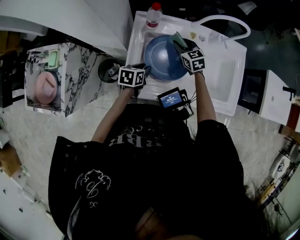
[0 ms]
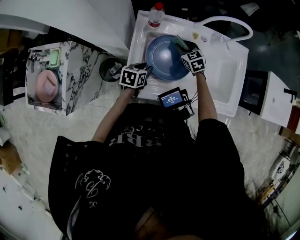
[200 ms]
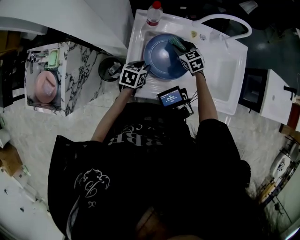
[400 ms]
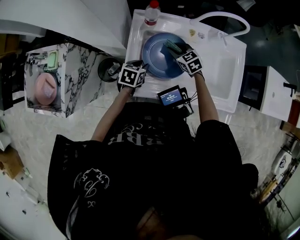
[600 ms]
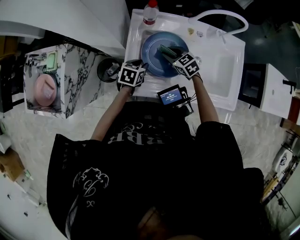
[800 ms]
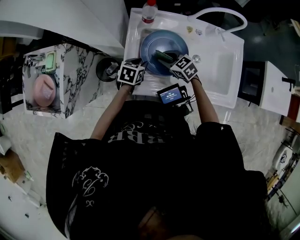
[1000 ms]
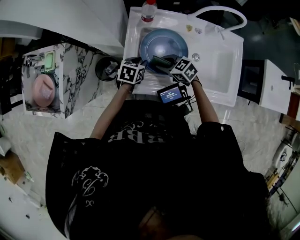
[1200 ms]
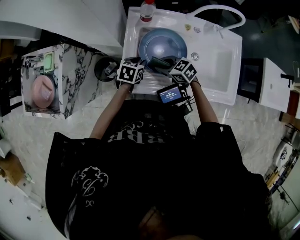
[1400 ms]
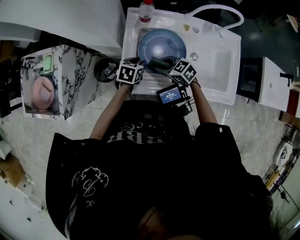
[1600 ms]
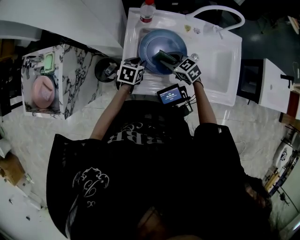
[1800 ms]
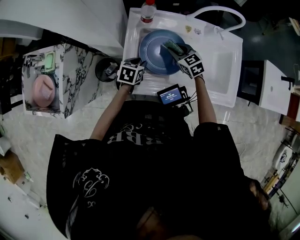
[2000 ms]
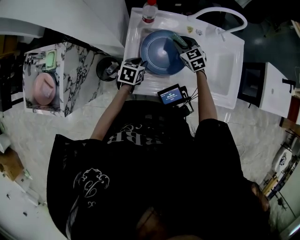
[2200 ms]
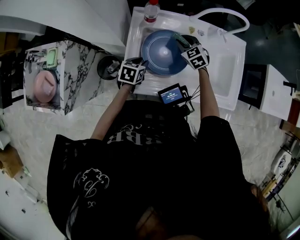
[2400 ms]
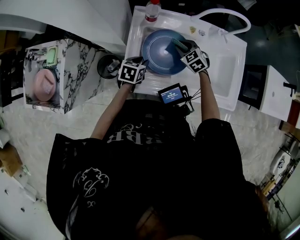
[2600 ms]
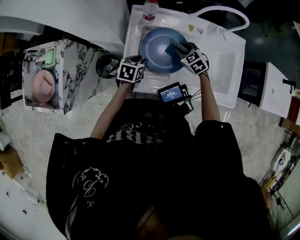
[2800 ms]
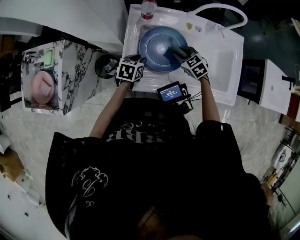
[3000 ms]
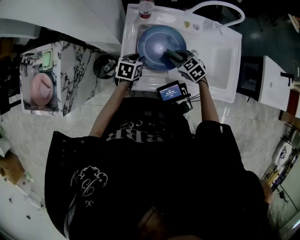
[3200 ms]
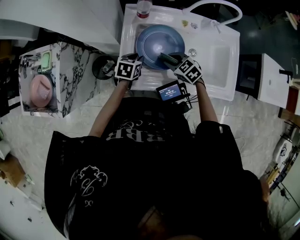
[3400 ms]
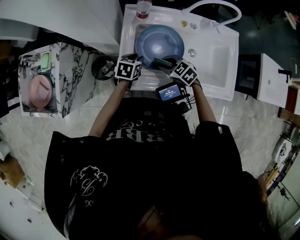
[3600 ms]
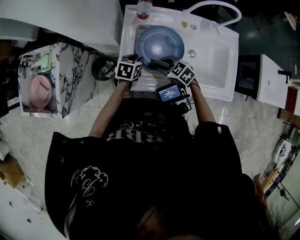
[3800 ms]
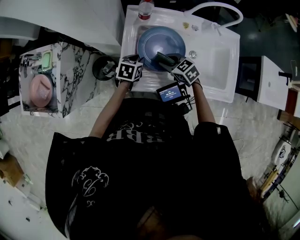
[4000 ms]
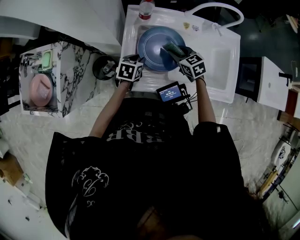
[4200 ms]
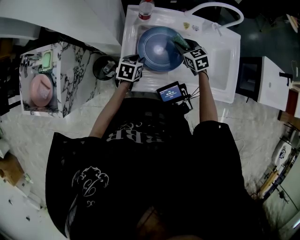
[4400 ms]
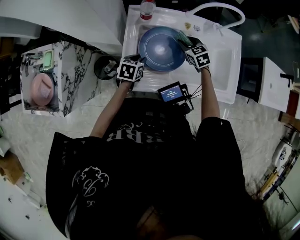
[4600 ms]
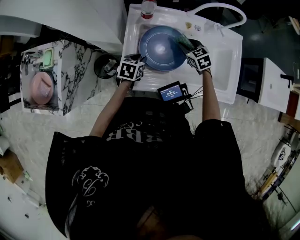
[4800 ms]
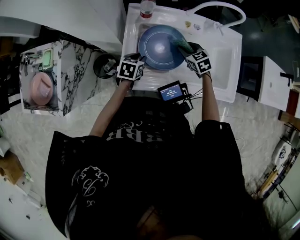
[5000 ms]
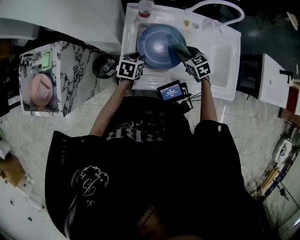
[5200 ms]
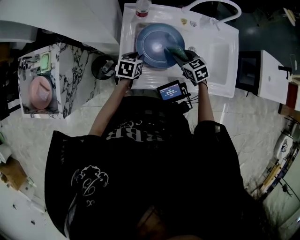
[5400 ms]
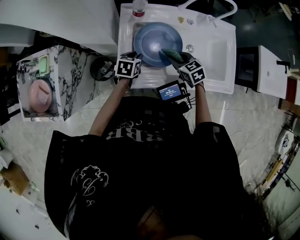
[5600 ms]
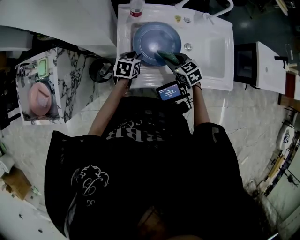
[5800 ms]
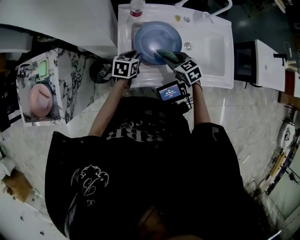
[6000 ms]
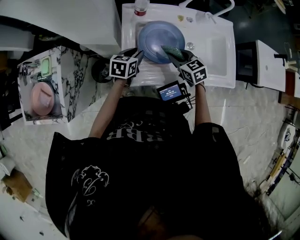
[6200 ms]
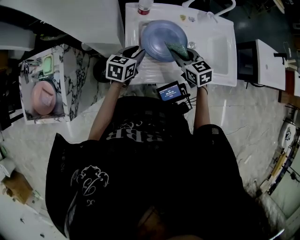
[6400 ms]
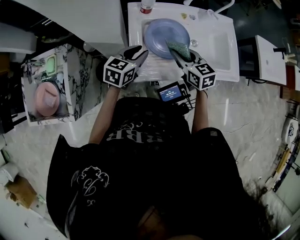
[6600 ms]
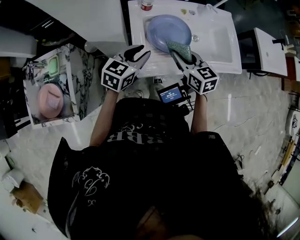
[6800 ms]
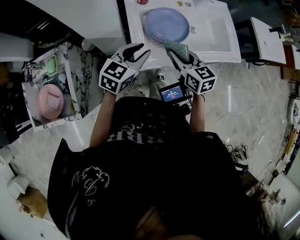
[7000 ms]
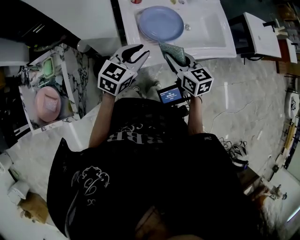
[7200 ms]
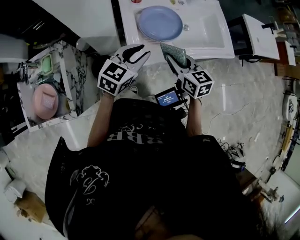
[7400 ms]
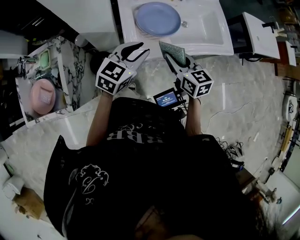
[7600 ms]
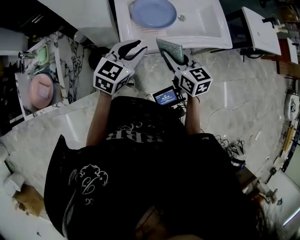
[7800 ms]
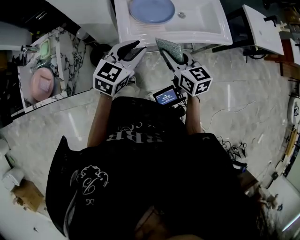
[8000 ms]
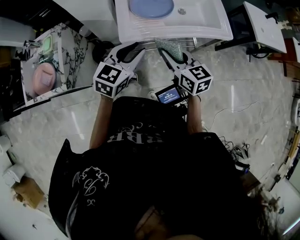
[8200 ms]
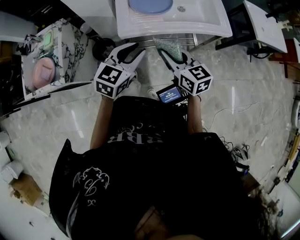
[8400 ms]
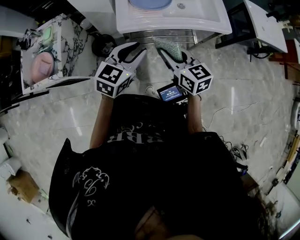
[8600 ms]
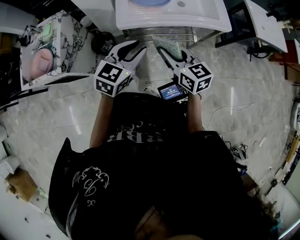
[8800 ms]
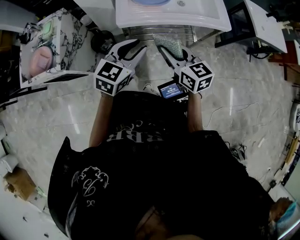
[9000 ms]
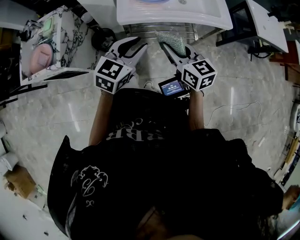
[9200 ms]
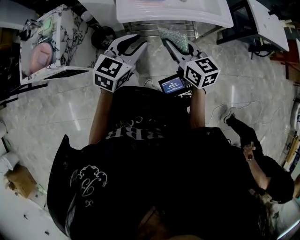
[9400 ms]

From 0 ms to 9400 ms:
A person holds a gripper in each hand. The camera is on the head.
From 0 ms to 1600 ms: The right gripper heads backward and to the left, covering approximately 20 cm, and turns by roughly 30 degrees.
From 1600 ms to 3200 ms: The right gripper shifts roughly 10 cm to the right, and travels forward and back again, roughly 15 cm each way.
From 3200 ms to 4800 ms: The right gripper shifts roughly 10 cm forward and to the right.
From 4800 ms to 6200 ms: The right gripper heads backward and to the left, covering about 10 cm.
From 6200 ms to 7800 ms: The grippers both shift backward and upward by roughly 25 cm. The right gripper swivels some 30 degrees; the left gripper changes its angle by some 40 degrees.
From 7800 ms to 9400 ms: The left gripper heads backward, covering some 15 cm, while the right gripper moves backward and to the right, some 15 cm.

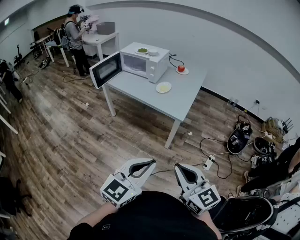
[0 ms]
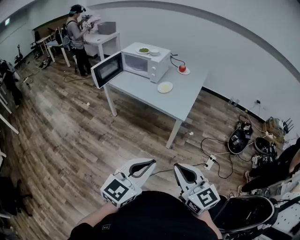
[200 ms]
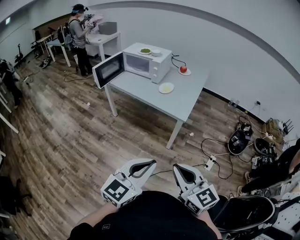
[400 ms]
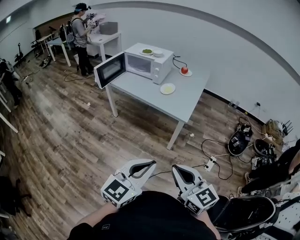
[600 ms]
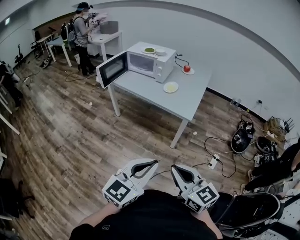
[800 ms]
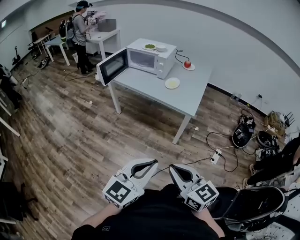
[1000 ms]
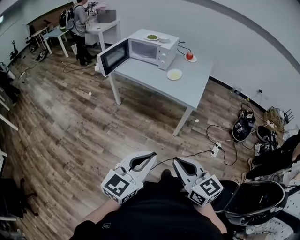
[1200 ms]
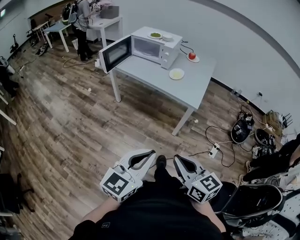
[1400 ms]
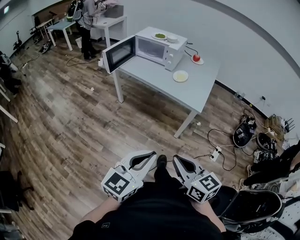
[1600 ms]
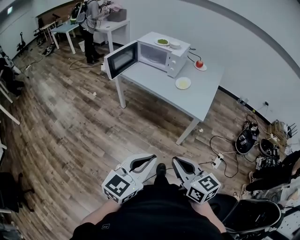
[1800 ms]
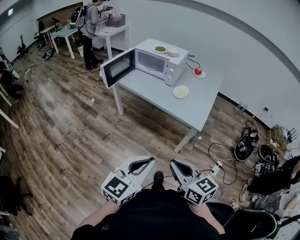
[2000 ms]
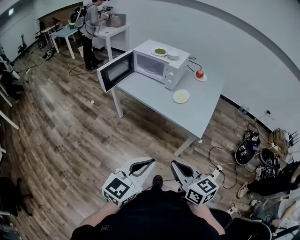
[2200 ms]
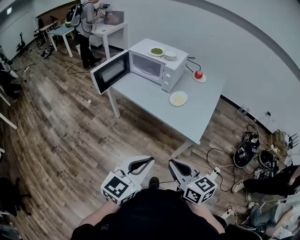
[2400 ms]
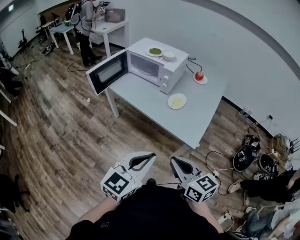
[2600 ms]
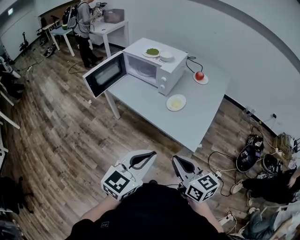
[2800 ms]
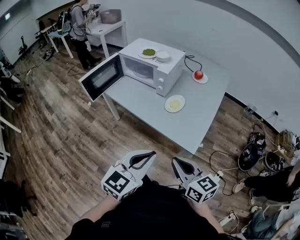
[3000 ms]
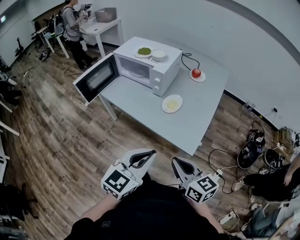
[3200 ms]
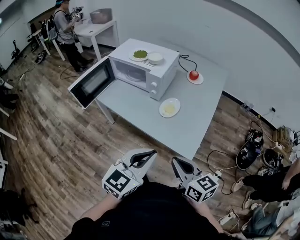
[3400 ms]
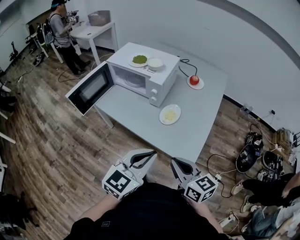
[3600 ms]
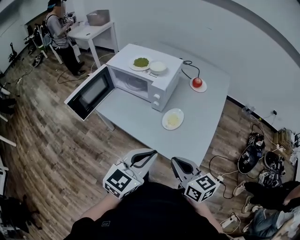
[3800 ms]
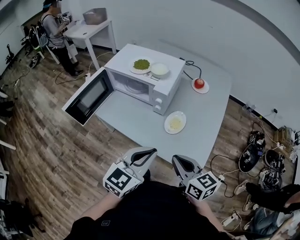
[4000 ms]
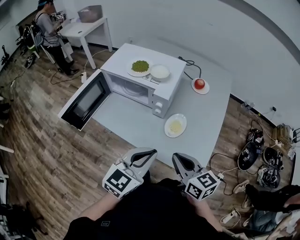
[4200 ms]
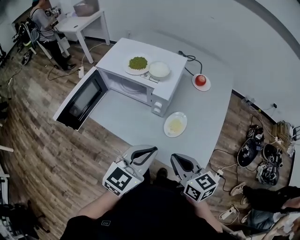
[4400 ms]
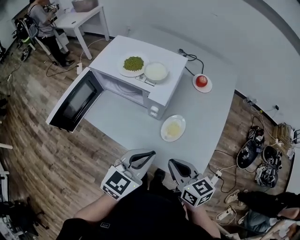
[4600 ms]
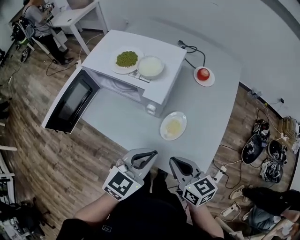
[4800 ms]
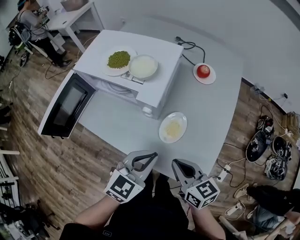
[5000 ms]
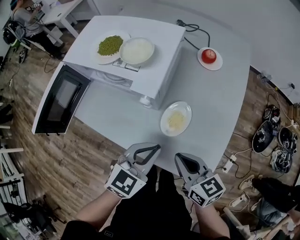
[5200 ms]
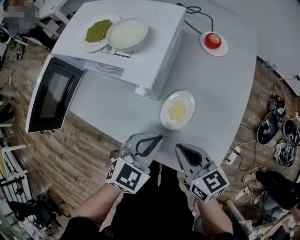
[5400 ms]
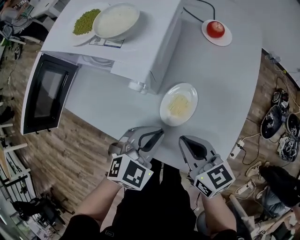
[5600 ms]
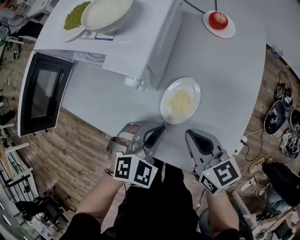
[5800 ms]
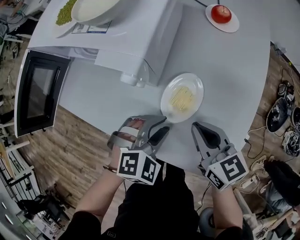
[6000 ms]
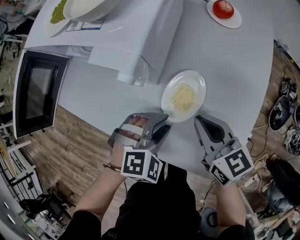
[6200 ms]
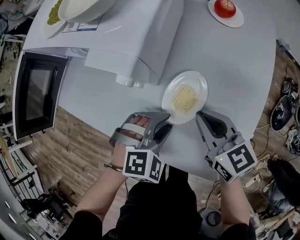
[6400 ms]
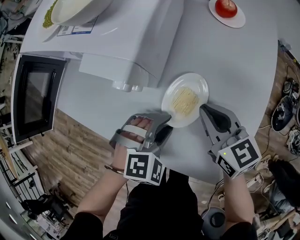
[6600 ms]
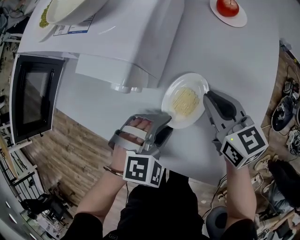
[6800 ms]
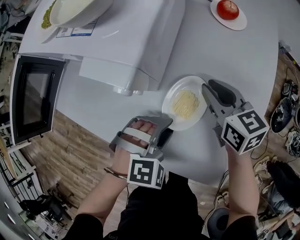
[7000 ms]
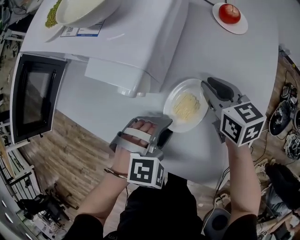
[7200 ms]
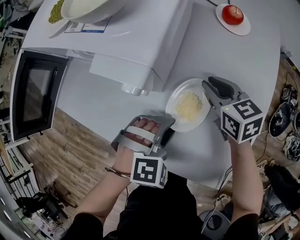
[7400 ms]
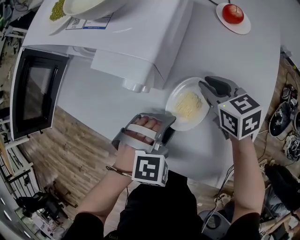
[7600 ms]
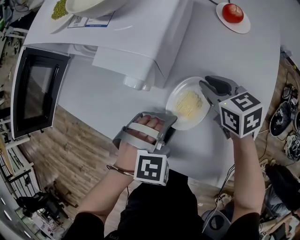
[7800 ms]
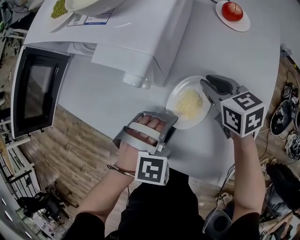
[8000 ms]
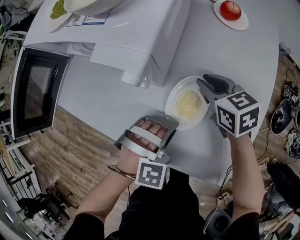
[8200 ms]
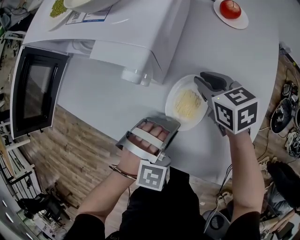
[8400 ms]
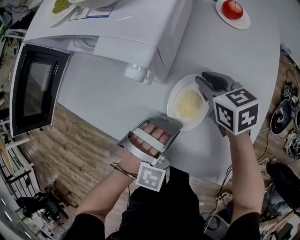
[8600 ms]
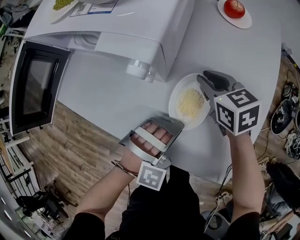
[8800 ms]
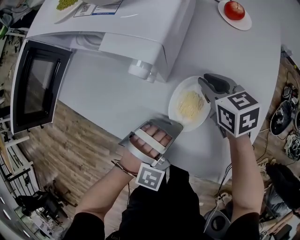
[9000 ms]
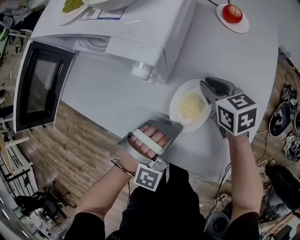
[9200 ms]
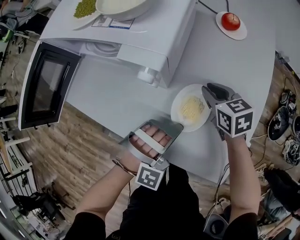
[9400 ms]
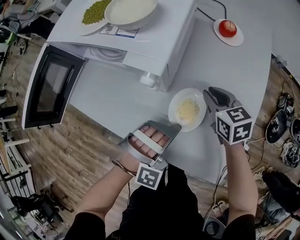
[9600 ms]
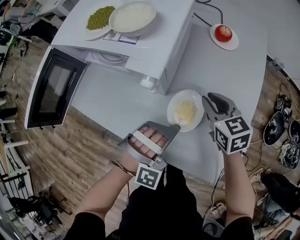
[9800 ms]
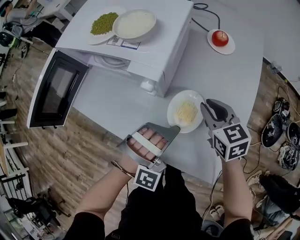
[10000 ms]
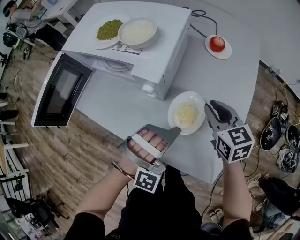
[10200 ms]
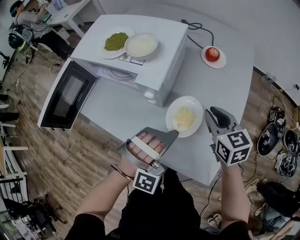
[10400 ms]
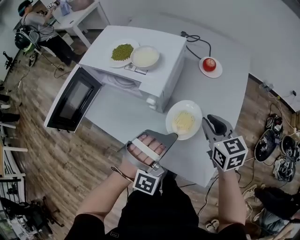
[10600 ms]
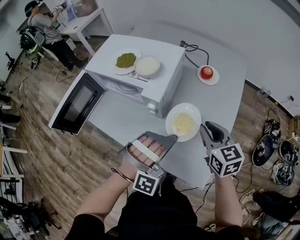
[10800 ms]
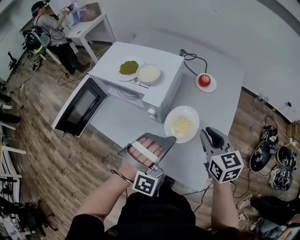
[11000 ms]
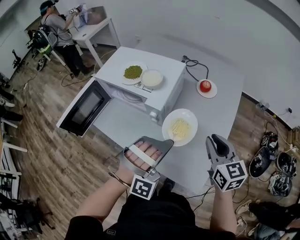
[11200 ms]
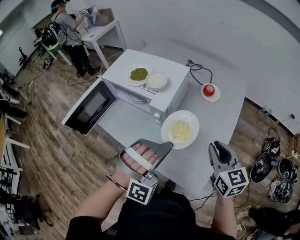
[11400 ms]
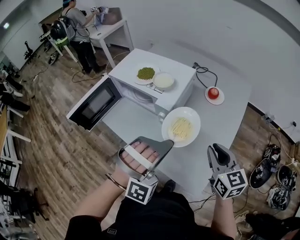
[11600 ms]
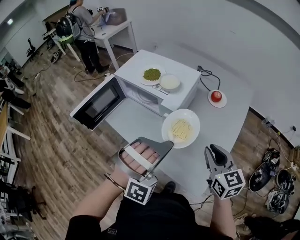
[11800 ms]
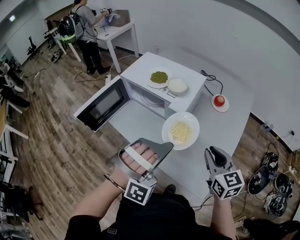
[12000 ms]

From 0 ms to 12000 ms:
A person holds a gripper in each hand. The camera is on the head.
From 0 ms to 1600 ms: The left gripper heads to the left, covering about 15 cm, while the right gripper travels to the left and downward by roughly 15 cm.
From 1600 ms to 3000 ms: The two grippers go some 30 cm forward.
From 3000 ms to 4400 ms: Both grippers travel together forward, about 25 cm.
From 4400 ms to 6000 ms: The right gripper moves downward and forward, about 20 cm. The left gripper goes approximately 25 cm downward, tilts its fingers roughly 40 degrees downward, and opens up.
From 6000 ms to 7600 ms: The right gripper is displaced forward and downward by approximately 15 cm.
From 7600 ms to 9000 ms: The left gripper swivels approximately 30 degrees, and closes its fingers.
From 9000 ms to 10400 ms: The grippers both shift upward by roughly 15 cm.
From 10400 ms to 12000 ms: The right gripper travels upward and backward by approximately 15 cm. Meanwhile the left gripper goes roughly 20 cm upward and to the left.

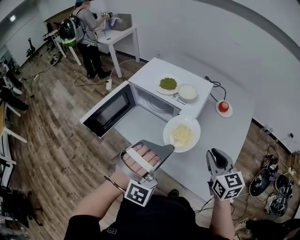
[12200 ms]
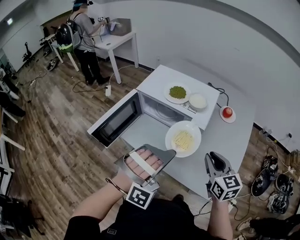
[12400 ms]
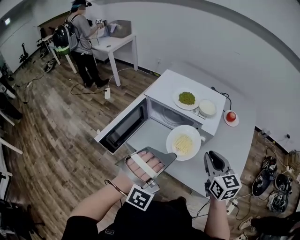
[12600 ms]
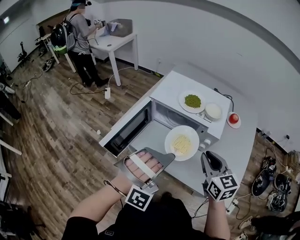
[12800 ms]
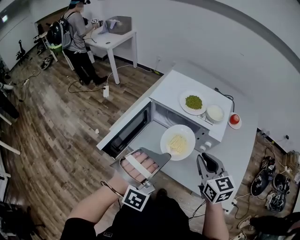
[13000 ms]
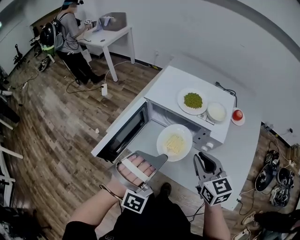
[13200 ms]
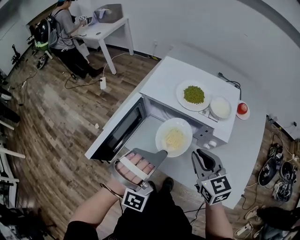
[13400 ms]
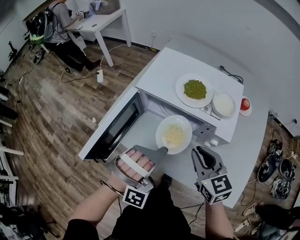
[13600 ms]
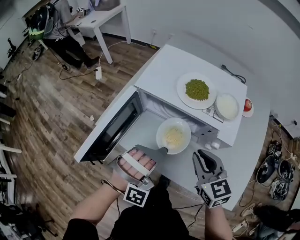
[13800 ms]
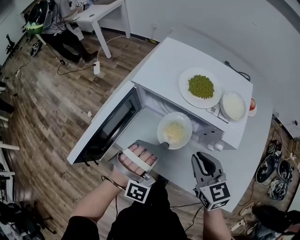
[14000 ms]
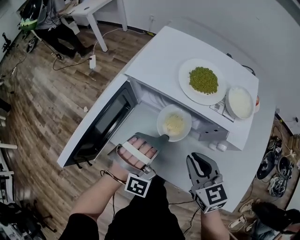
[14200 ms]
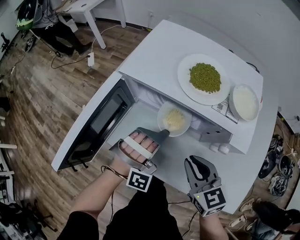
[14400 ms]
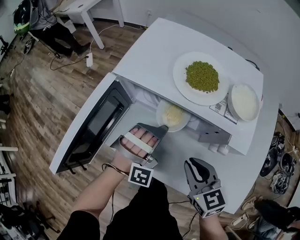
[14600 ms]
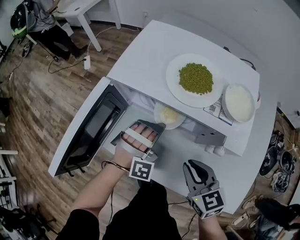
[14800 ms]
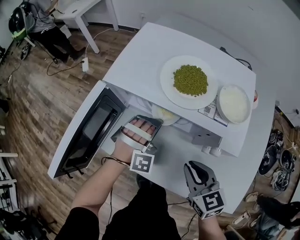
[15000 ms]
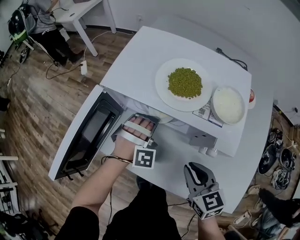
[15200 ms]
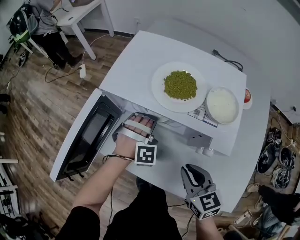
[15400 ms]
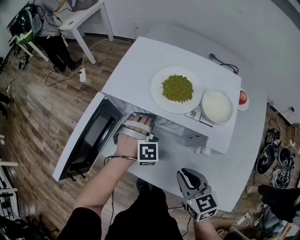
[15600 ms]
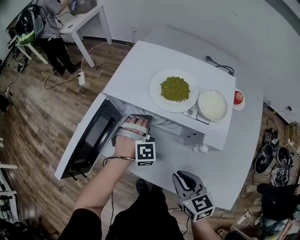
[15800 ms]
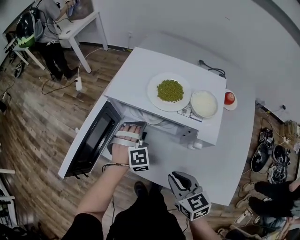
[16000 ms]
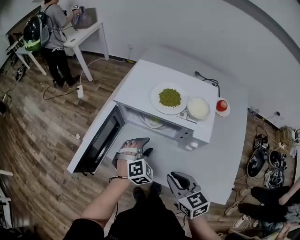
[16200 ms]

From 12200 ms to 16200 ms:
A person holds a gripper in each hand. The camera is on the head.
From 12200 ms to 13600 ms: The right gripper travels to the left and forward by roughly 25 cm. The left gripper moves to the left, forward and downward, approximately 25 cm.
From 13600 ms to 14800 ms: The right gripper is displaced downward by some 10 cm; the left gripper travels downward and forward by roughly 20 cm.
From 14800 ms to 16200 ms: The left gripper heads backward, covering approximately 5 cm, turns by approximately 40 degrees, and opens. The right gripper travels upward and backward by some 10 cm.
